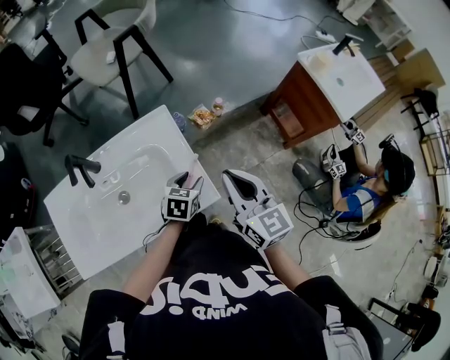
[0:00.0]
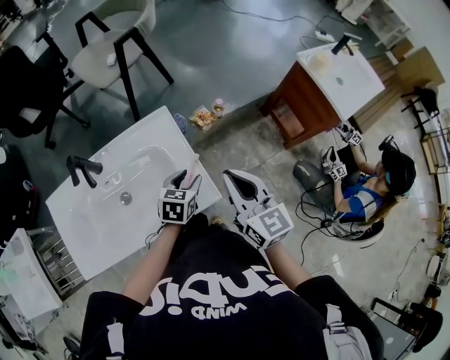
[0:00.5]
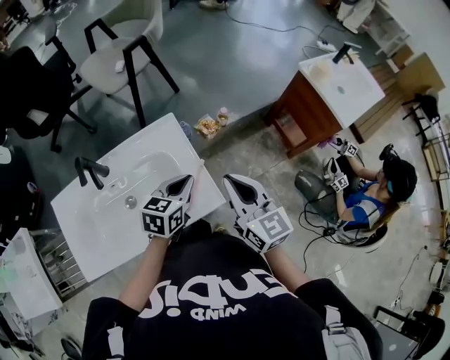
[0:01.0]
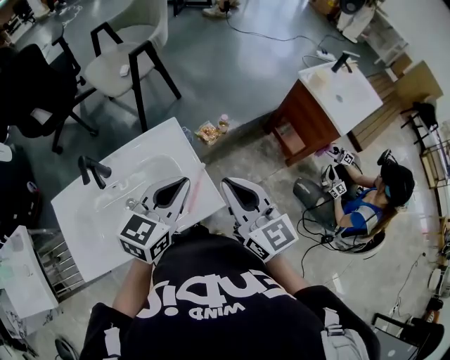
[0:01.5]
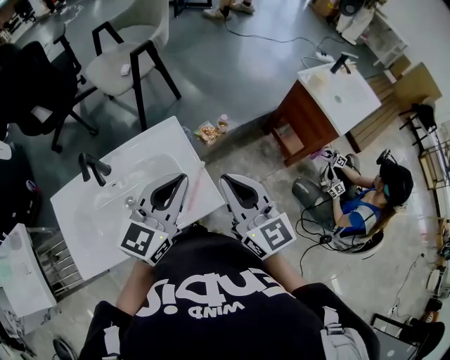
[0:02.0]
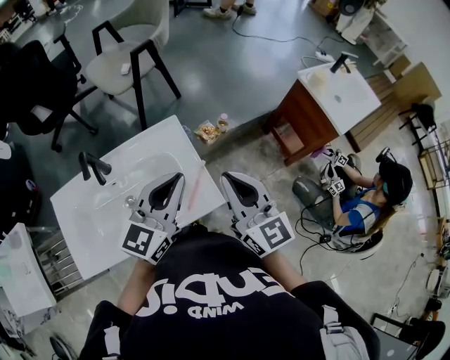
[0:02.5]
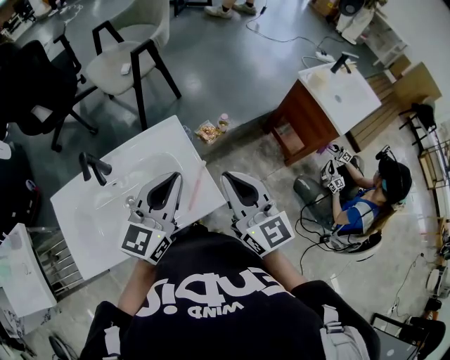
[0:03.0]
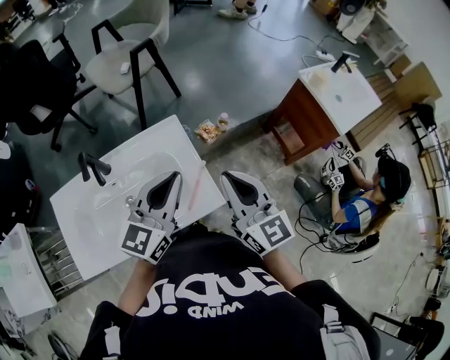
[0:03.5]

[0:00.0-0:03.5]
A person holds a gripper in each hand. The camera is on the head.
0:00.0 to 0:02.0: The right gripper travels upward by approximately 10 cm. The left gripper is displaced upward by approximately 30 cm, tilts its fingers approximately 40 degrees upward, and closes its fingers.
0:02.0 to 0:03.5: The grippers make only small movements.

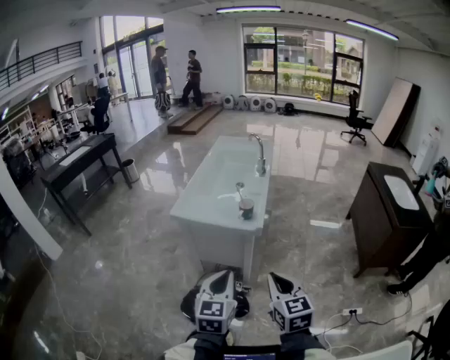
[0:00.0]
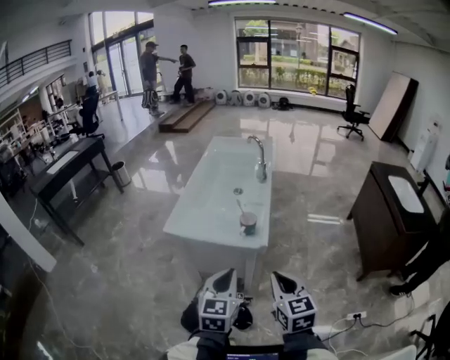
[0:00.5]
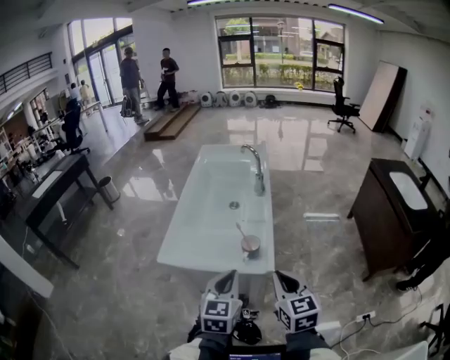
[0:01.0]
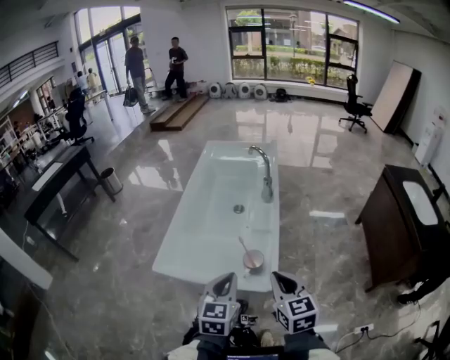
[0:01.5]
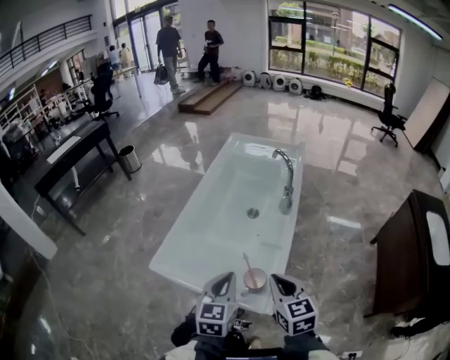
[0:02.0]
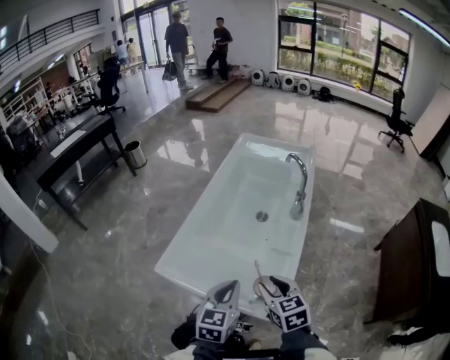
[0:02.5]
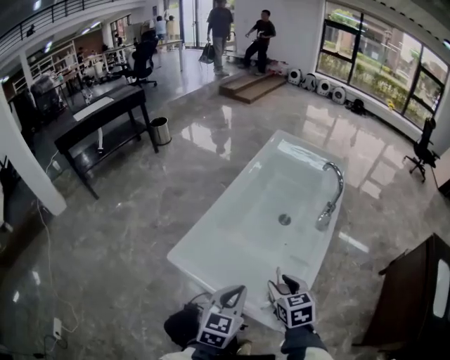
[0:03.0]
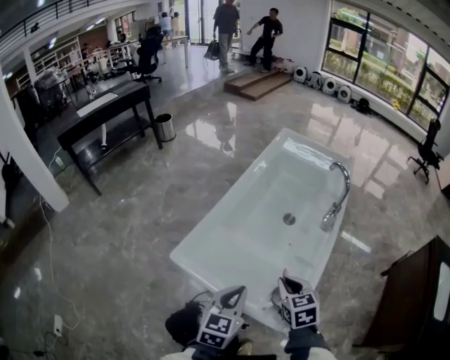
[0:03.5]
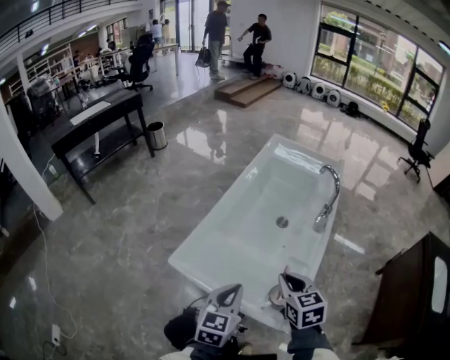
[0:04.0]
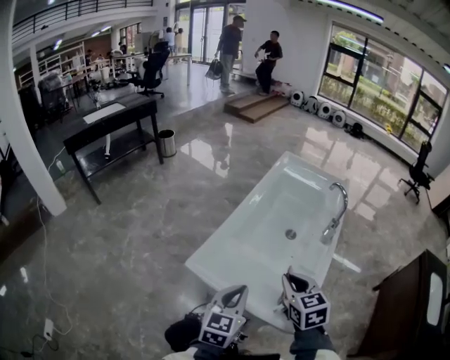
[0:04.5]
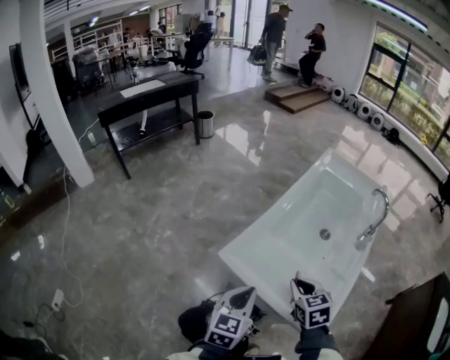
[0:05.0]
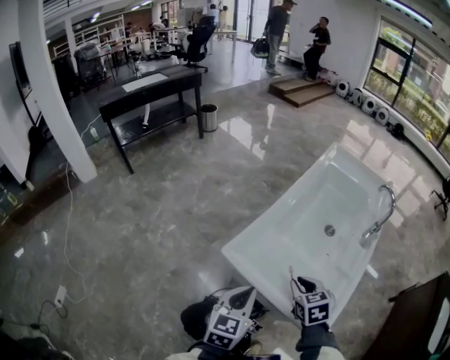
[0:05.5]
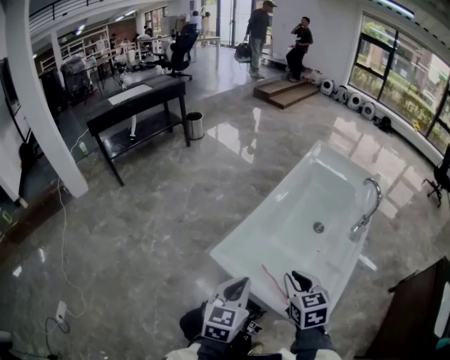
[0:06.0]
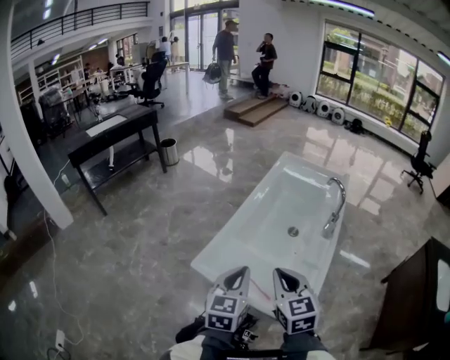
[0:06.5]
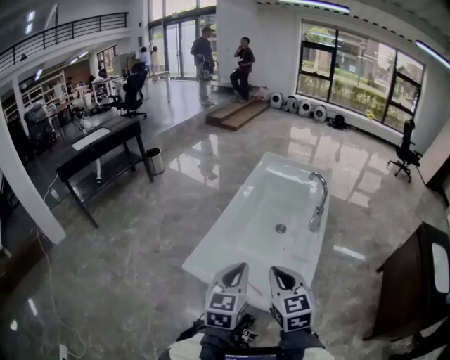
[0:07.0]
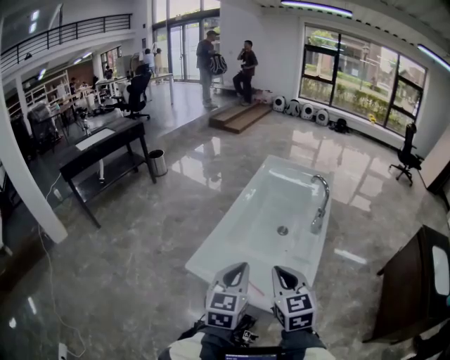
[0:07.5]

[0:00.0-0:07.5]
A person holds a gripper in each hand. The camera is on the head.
0:00.0 to 0:02.0: The two grippers go roughly 40 cm forward.
0:02.0 to 0:04.0: The right gripper heads forward and to the left, covering some 10 cm, goes downward and returns, roughly 10 cm each way, and opens and closes again. The left gripper heads to the left, covering some 5 cm.
0:04.0 to 0:05.5: The right gripper heads to the left and downward, covering about 10 cm, while the left gripper shifts roughly 10 cm to the left.
0:05.5 to 0:07.5: The left gripper heads upward and to the right, covering some 15 cm, while the right gripper goes approximately 15 cm upward, and turns by about 30 degrees.

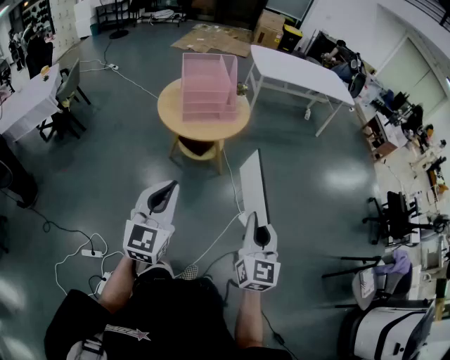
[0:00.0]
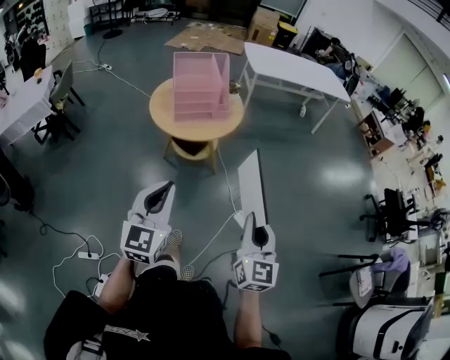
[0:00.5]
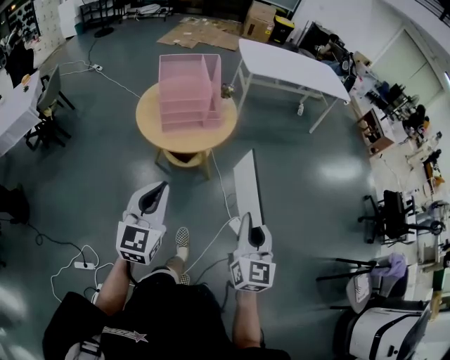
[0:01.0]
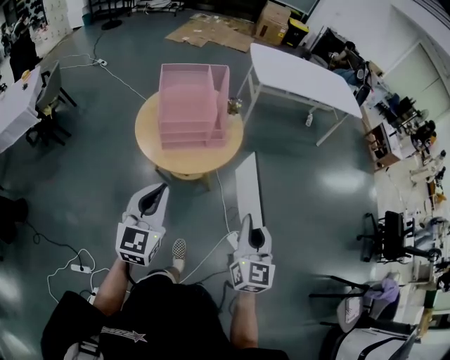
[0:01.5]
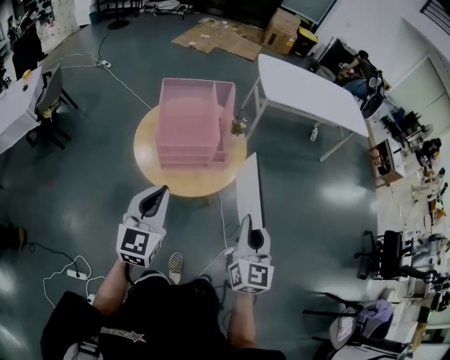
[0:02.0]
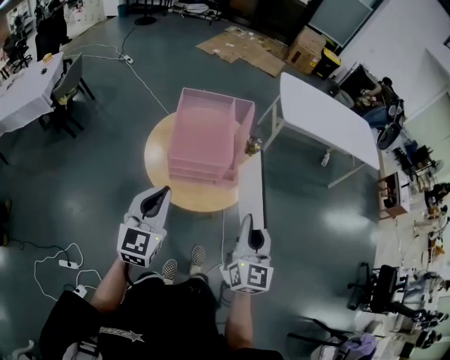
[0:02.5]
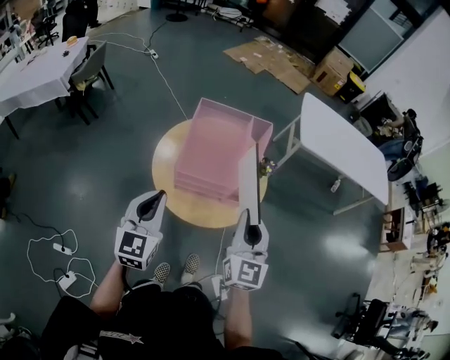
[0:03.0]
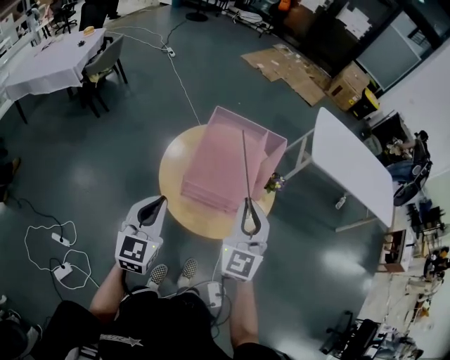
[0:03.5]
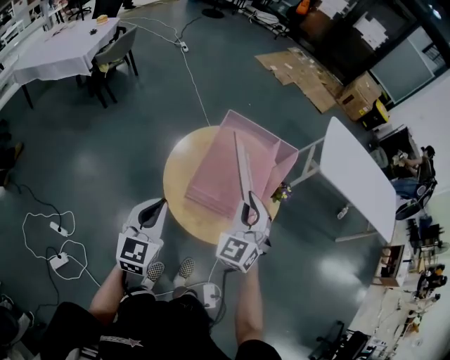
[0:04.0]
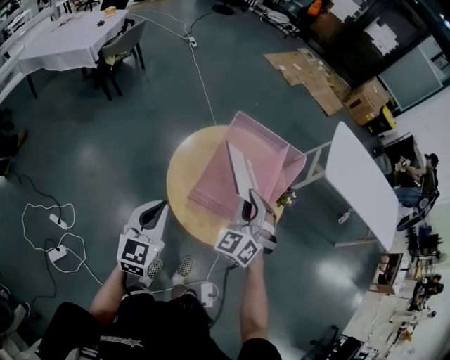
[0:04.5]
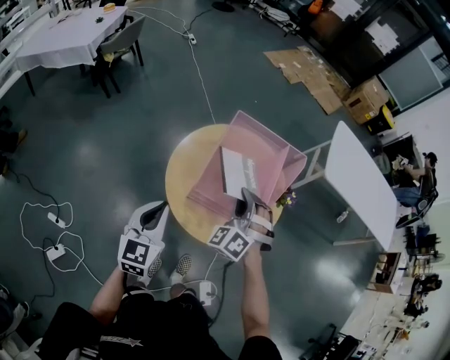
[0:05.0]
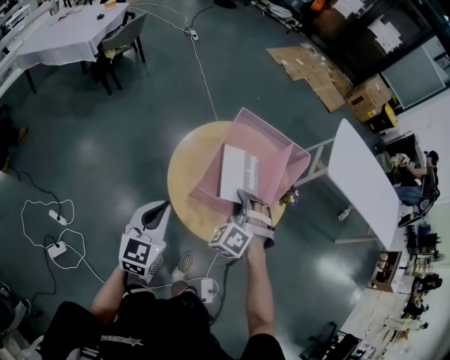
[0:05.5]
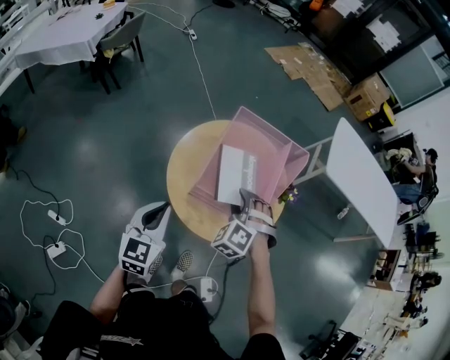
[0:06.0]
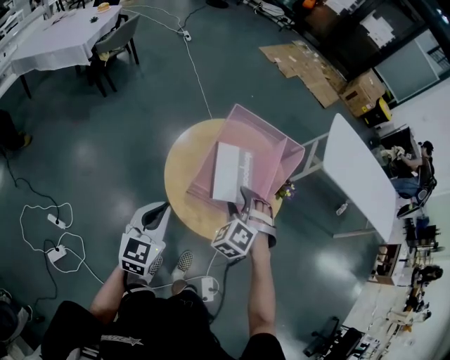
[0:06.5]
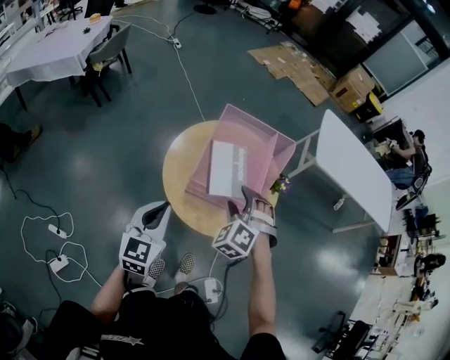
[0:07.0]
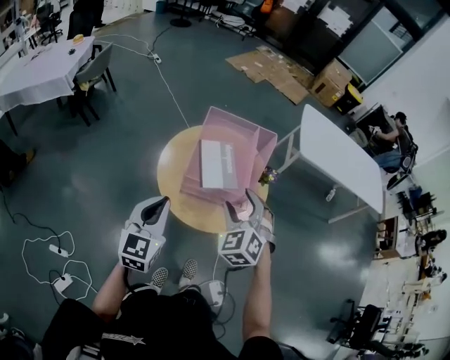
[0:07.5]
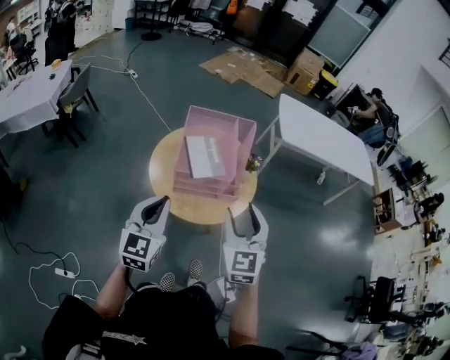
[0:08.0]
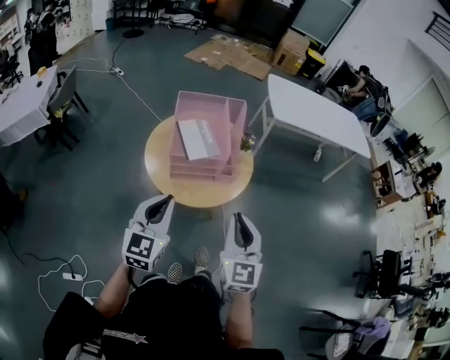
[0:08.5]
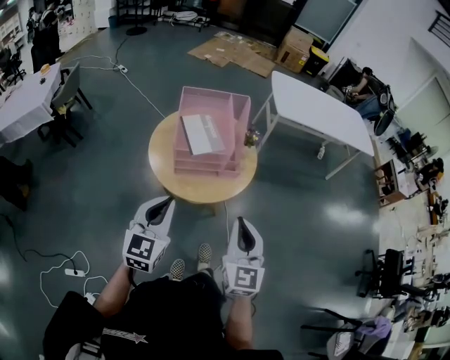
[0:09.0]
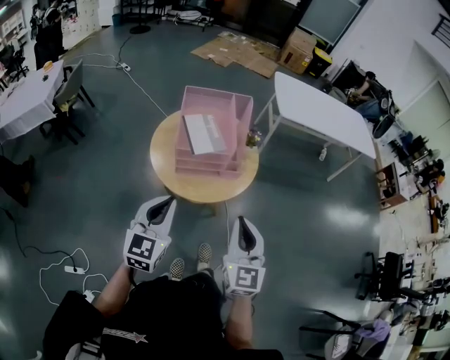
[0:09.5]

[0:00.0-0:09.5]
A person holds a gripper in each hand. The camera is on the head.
0:00.0 to 0:02.0: The grippers both shift forward by about 35 cm.
0:02.0 to 0:04.0: The right gripper heads forward and to the left, covering about 30 cm, and twists roughly 50 degrees counterclockwise, seen from behind. The left gripper heads forward, to the left and downward, covering roughly 15 cm, and changes its angle by roughly 30 degrees.
0:04.0 to 0:05.5: The right gripper moves downward, some 10 cm, and turns by approximately 50 degrees.
0:05.5 to 0:07.5: The right gripper is displaced upward and backward by about 15 cm, changes its angle by some 30 degrees, and opens its fingers. The left gripper goes about 5 cm upward.
0:07.5 to 0:09.5: The left gripper travels backward and to the right by roughly 10 cm; the right gripper moves backward, some 20 cm, rotates around the line of its fingers by about 40 degrees, clockwise from behind, and closes.

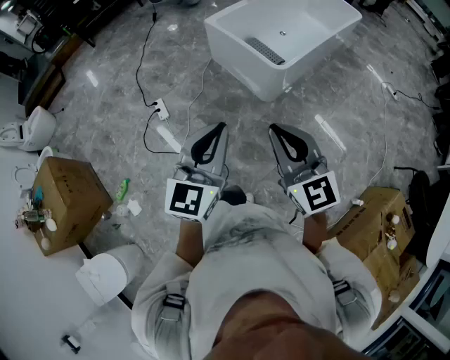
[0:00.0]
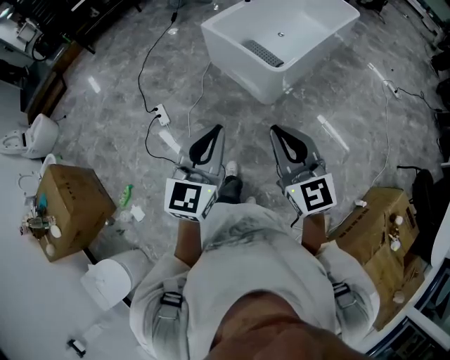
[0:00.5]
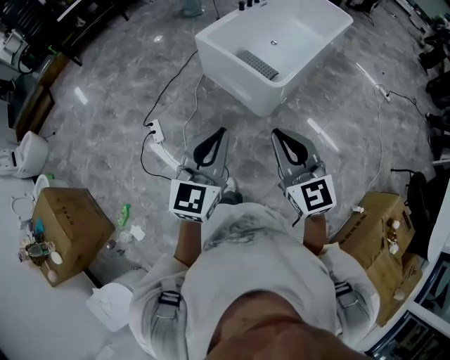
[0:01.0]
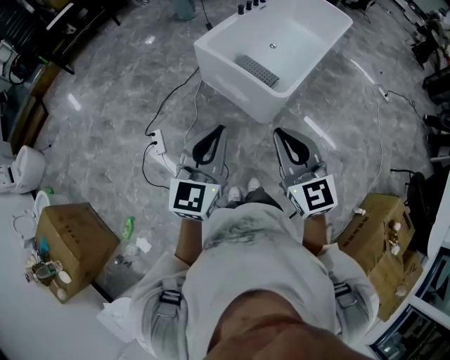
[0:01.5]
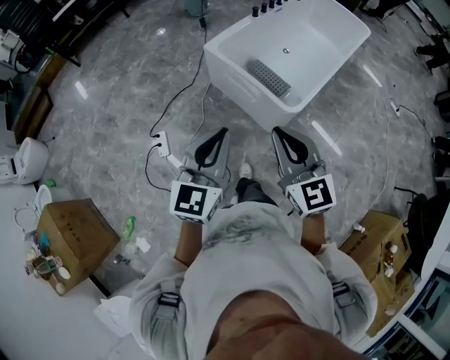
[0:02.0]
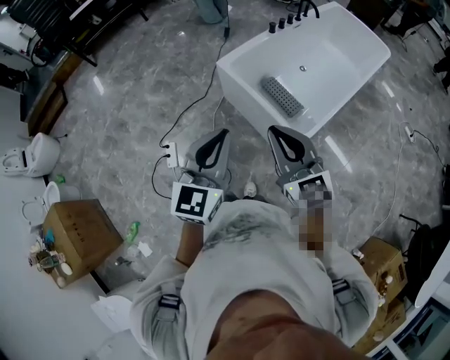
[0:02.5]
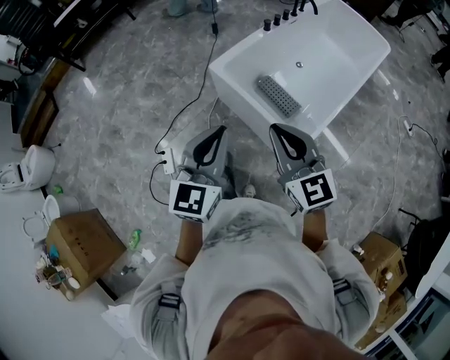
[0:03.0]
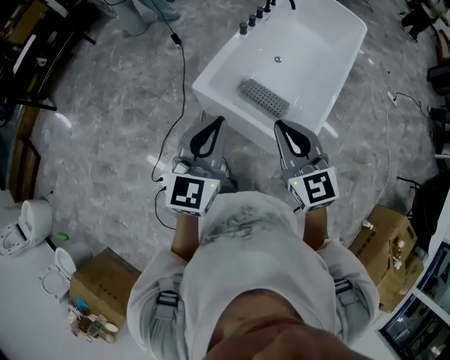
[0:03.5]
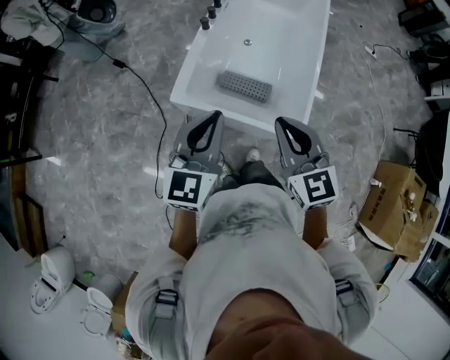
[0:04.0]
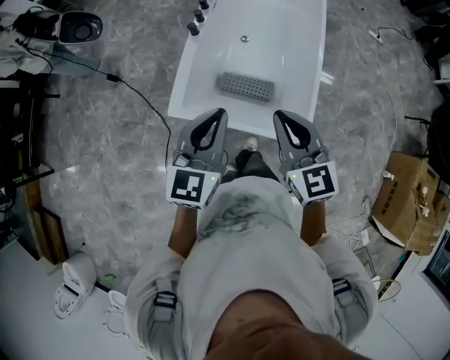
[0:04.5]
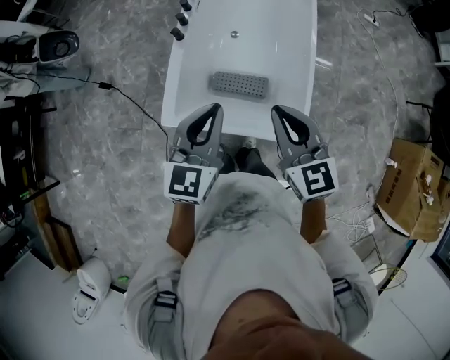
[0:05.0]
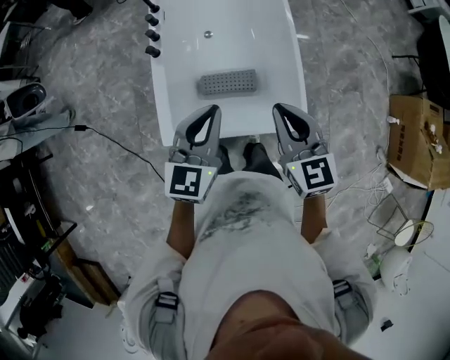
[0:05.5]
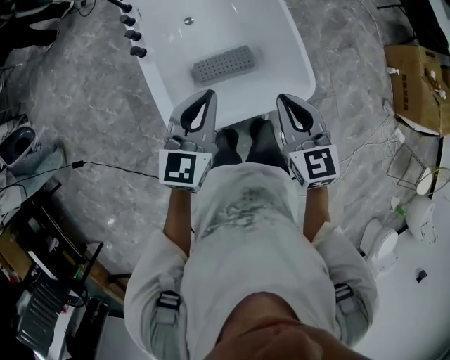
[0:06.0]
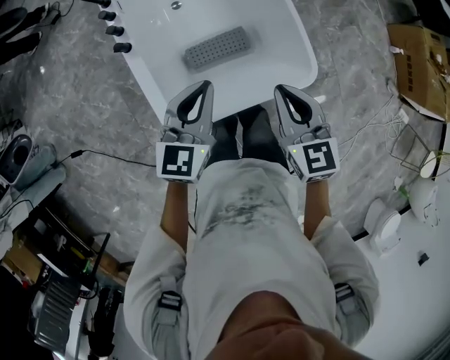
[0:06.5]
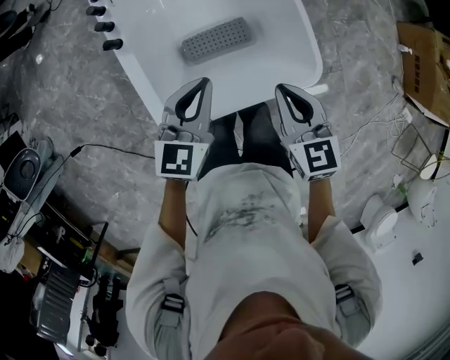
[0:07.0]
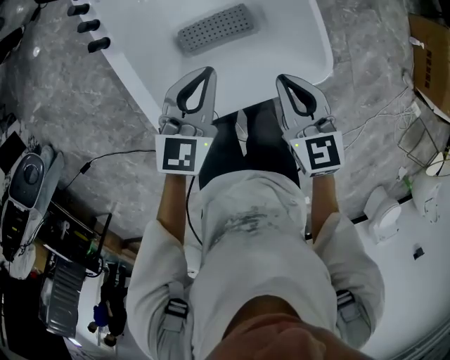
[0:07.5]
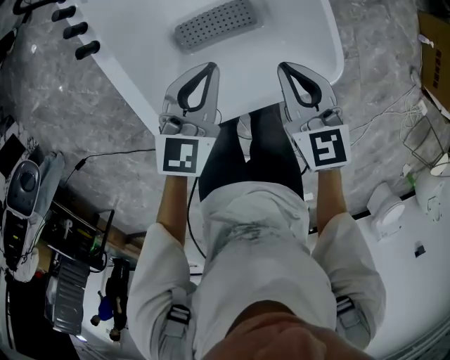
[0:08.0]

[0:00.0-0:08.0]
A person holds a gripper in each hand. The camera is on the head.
0:00.0 to 0:02.0: The grippers both shift forward by approximately 35 cm.
0:02.0 to 0:04.0: The pair of grippers is taken some 40 cm. The right gripper swivels some 30 degrees. Meanwhile the left gripper changes its angle by about 30 degrees.
0:04.0 to 0:06.0: The right gripper shifts by about 20 cm, and swivels approximately 40 degrees. The left gripper changes place by about 25 cm, and changes its angle by roughly 40 degrees.
0:06.0 to 0:08.0: Both grippers travel together downward and forward, approximately 25 cm.
